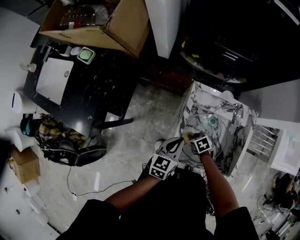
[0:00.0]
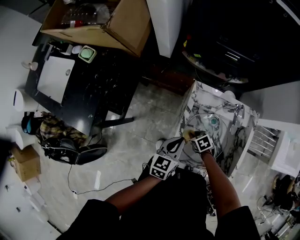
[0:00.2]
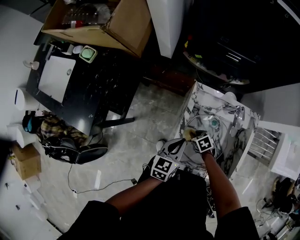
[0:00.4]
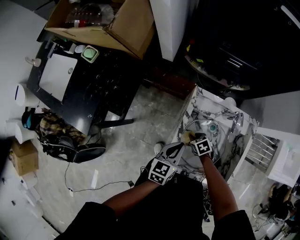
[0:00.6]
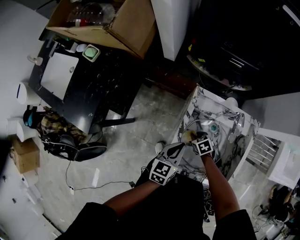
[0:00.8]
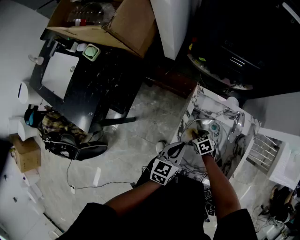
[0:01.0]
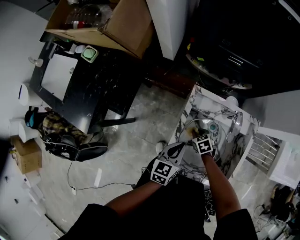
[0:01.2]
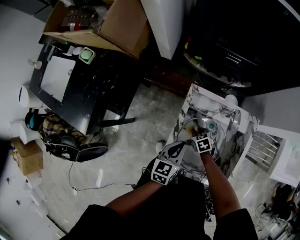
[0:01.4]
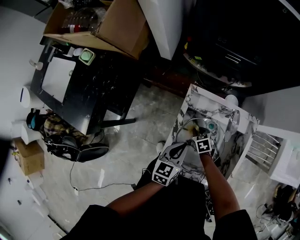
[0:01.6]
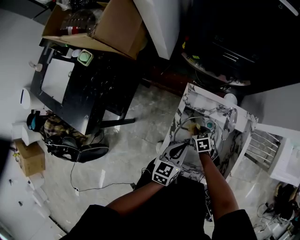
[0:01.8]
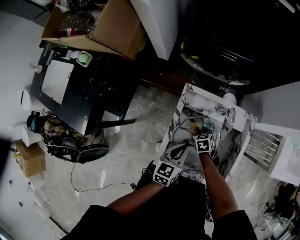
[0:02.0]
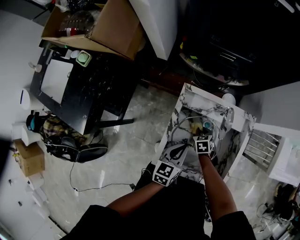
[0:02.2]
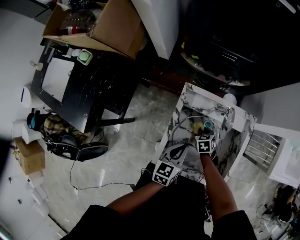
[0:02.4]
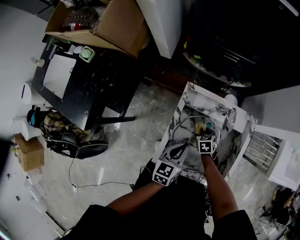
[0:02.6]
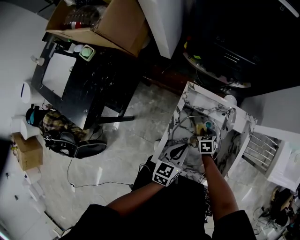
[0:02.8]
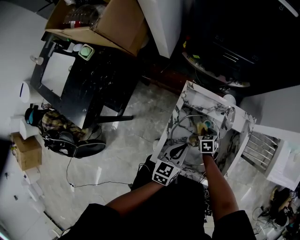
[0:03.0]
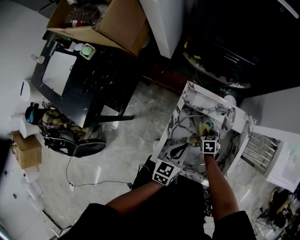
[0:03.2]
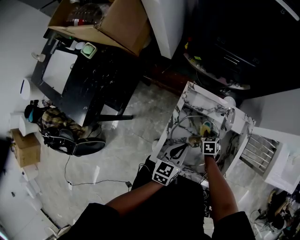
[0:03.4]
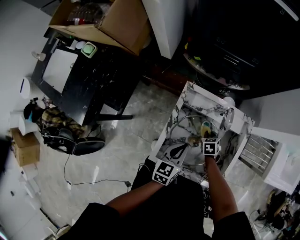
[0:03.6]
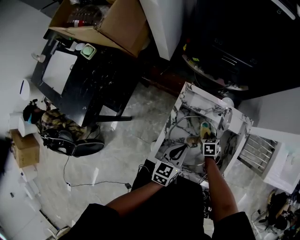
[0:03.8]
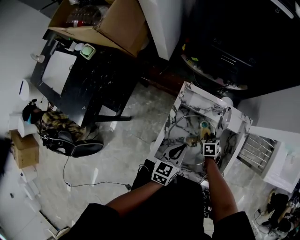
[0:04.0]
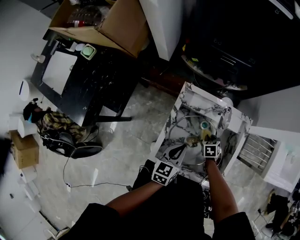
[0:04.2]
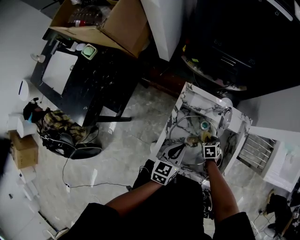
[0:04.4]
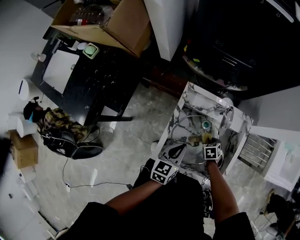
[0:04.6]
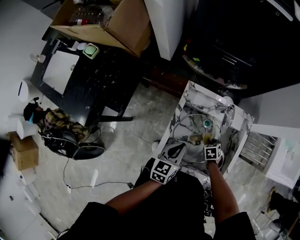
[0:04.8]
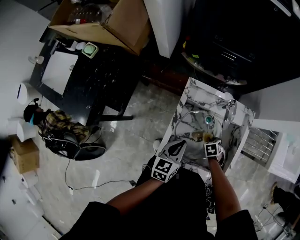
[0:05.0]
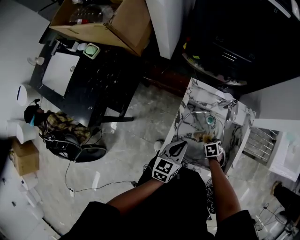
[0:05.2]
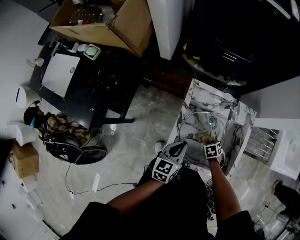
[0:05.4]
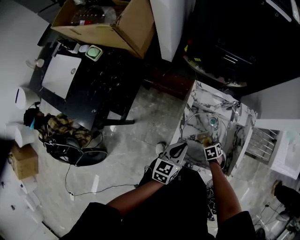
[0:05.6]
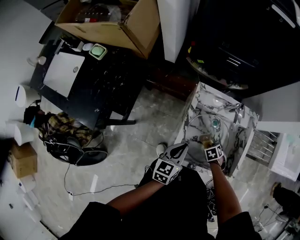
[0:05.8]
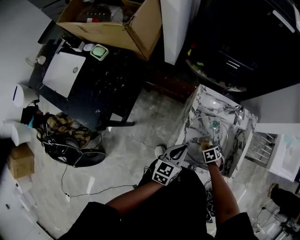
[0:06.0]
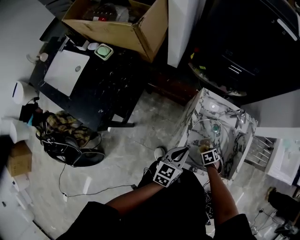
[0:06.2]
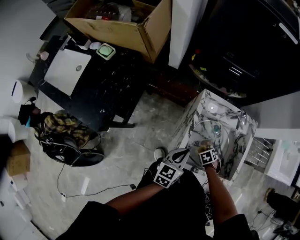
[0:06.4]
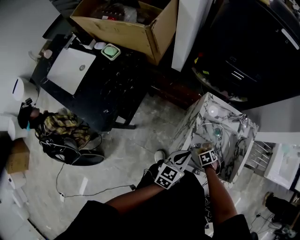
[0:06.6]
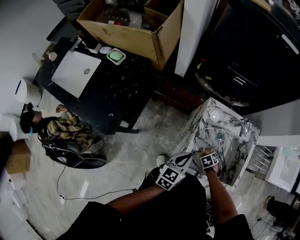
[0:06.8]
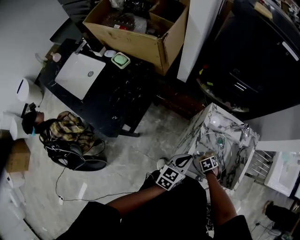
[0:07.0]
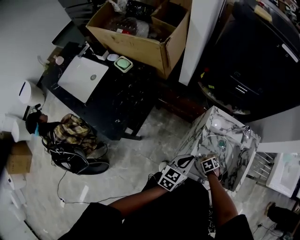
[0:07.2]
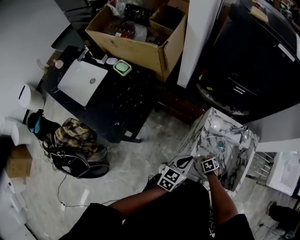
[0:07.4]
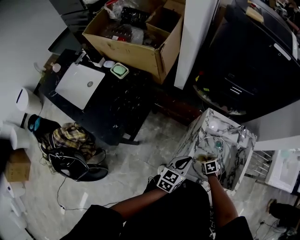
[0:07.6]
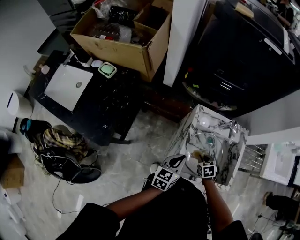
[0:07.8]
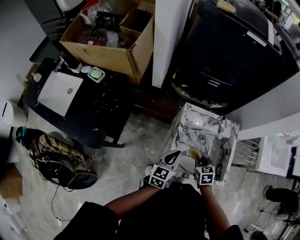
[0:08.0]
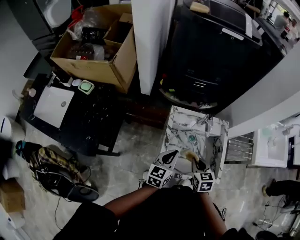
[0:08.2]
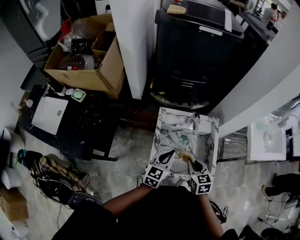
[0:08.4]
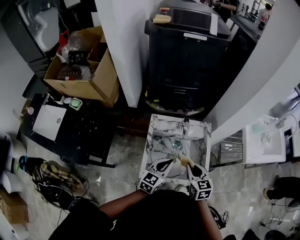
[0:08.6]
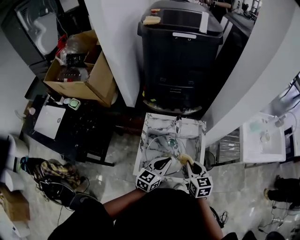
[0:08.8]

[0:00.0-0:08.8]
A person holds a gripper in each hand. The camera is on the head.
0:00.0 to 0:01.4: The right gripper shifts by about 5 cm.
0:01.4 to 0:03.0: The left gripper shifts by about 5 cm; the right gripper travels to the right by approximately 10 cm.
0:03.0 to 0:04.4: The right gripper heads to the right, covering about 5 cm.
0:04.4 to 0:05.8: The right gripper moves some 10 cm. Meanwhile the left gripper changes place by about 10 cm.
0:05.8 to 0:07.4: The right gripper changes place by about 10 cm. Meanwhile the left gripper moves approximately 5 cm.
0:07.4 to 0:08.8: The right gripper moves upward, approximately 30 cm, and tilts its fingers approximately 50 degrees upward. The left gripper moves about 25 cm.

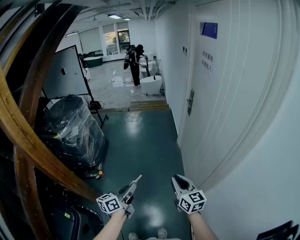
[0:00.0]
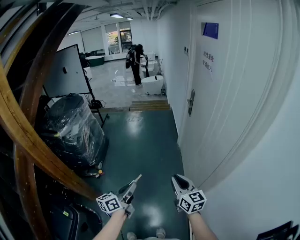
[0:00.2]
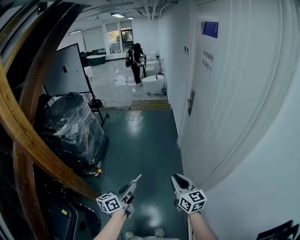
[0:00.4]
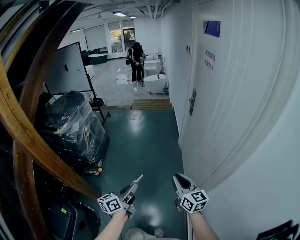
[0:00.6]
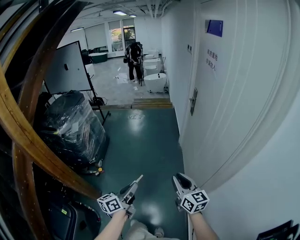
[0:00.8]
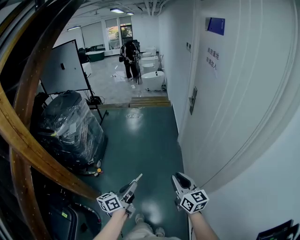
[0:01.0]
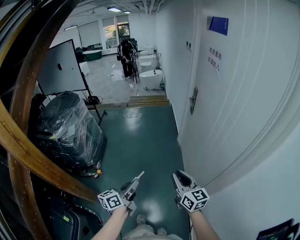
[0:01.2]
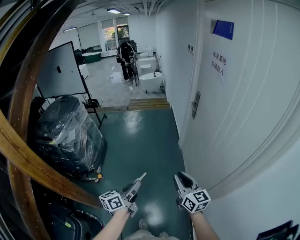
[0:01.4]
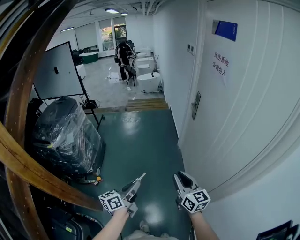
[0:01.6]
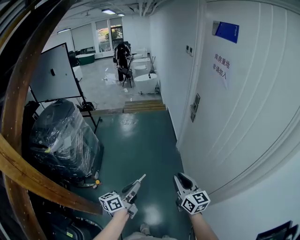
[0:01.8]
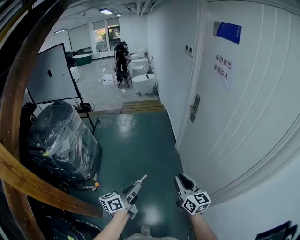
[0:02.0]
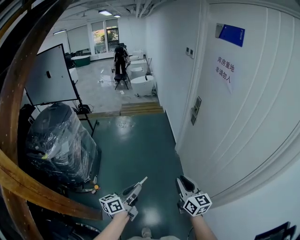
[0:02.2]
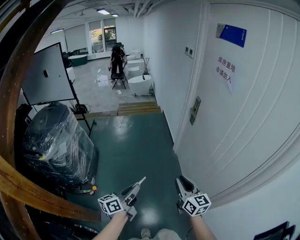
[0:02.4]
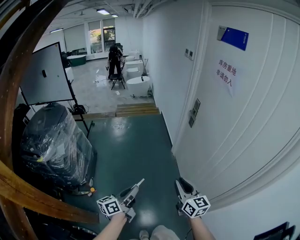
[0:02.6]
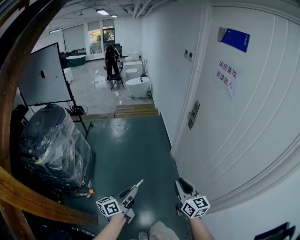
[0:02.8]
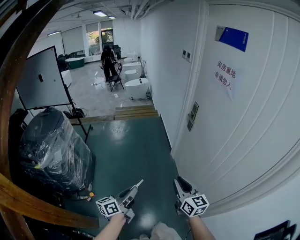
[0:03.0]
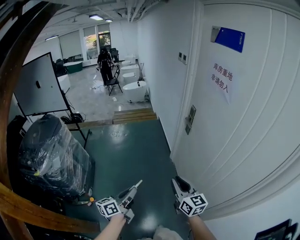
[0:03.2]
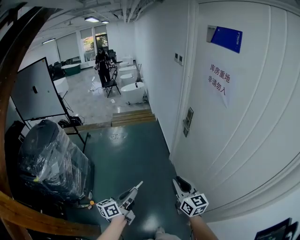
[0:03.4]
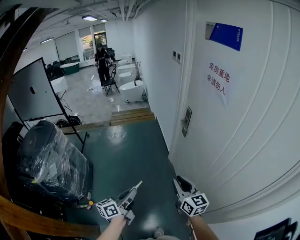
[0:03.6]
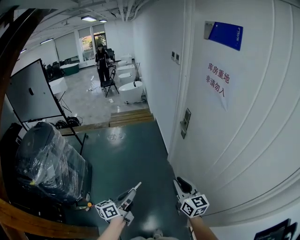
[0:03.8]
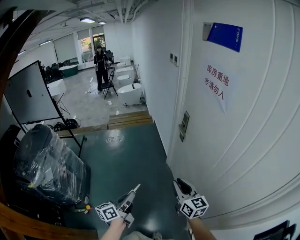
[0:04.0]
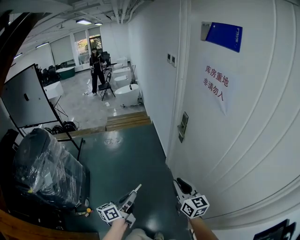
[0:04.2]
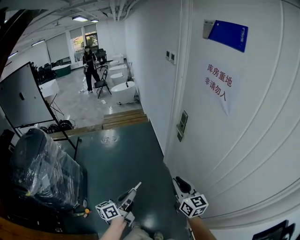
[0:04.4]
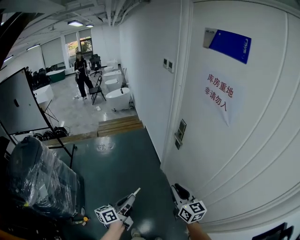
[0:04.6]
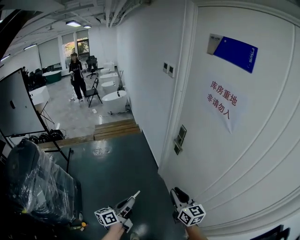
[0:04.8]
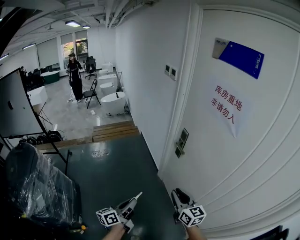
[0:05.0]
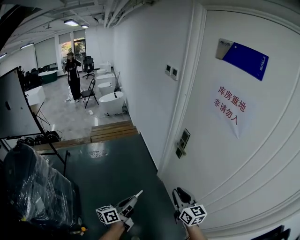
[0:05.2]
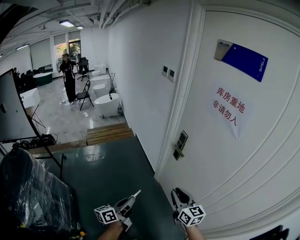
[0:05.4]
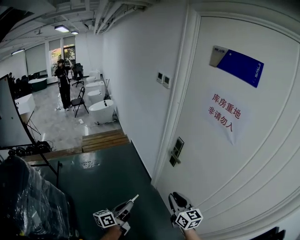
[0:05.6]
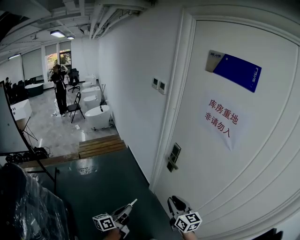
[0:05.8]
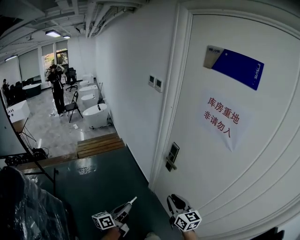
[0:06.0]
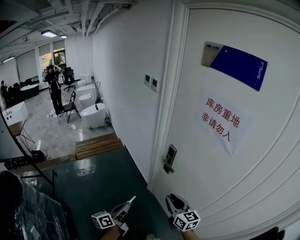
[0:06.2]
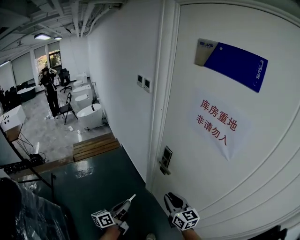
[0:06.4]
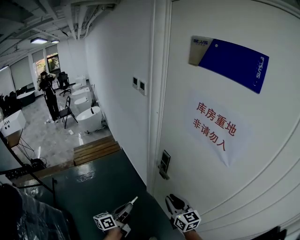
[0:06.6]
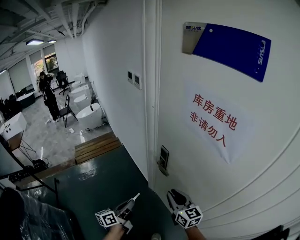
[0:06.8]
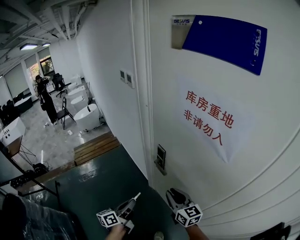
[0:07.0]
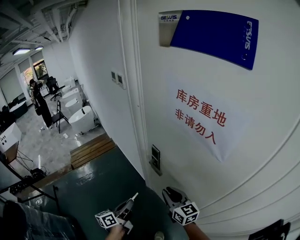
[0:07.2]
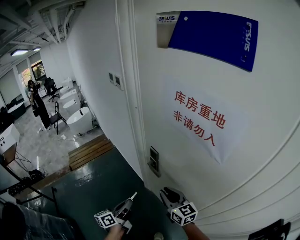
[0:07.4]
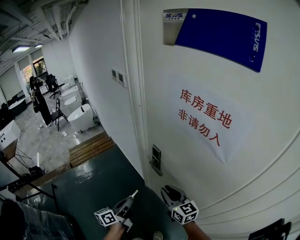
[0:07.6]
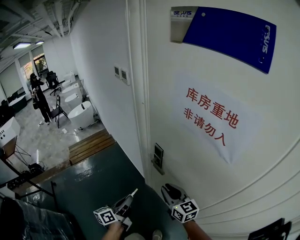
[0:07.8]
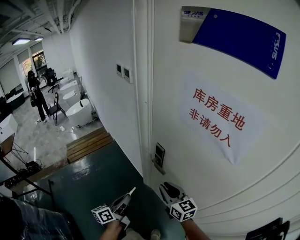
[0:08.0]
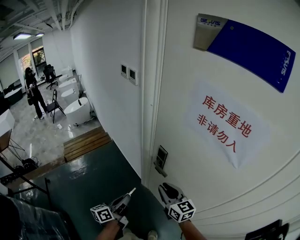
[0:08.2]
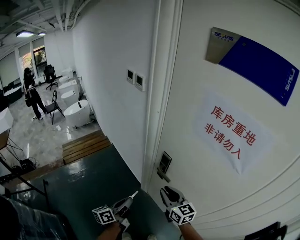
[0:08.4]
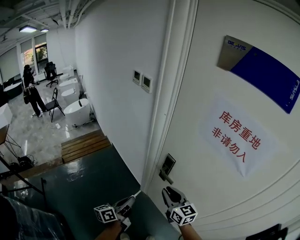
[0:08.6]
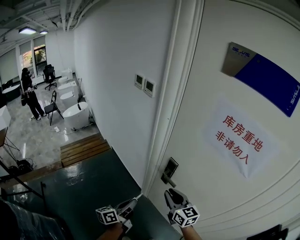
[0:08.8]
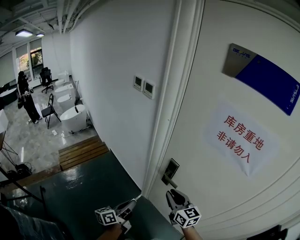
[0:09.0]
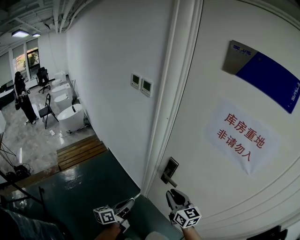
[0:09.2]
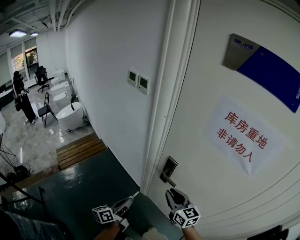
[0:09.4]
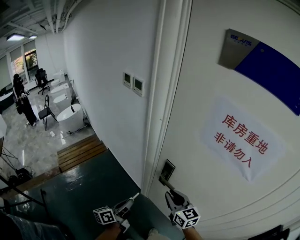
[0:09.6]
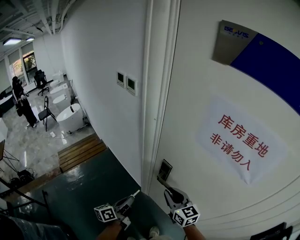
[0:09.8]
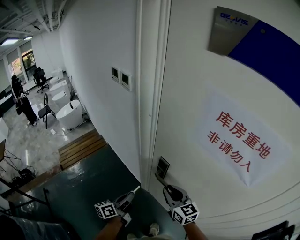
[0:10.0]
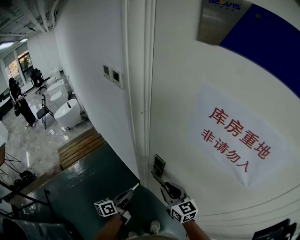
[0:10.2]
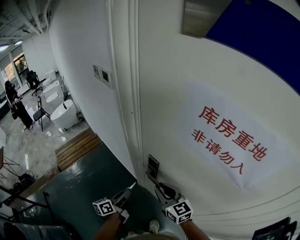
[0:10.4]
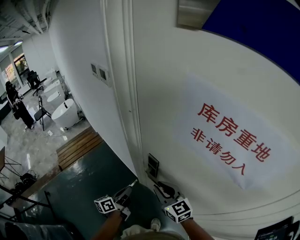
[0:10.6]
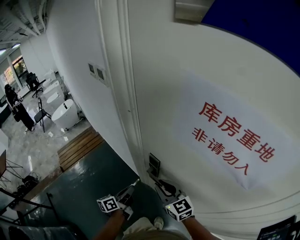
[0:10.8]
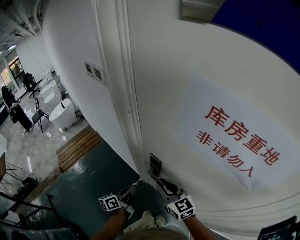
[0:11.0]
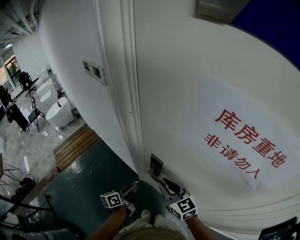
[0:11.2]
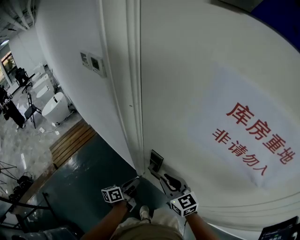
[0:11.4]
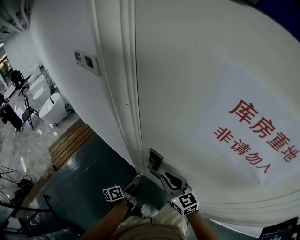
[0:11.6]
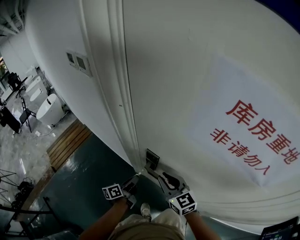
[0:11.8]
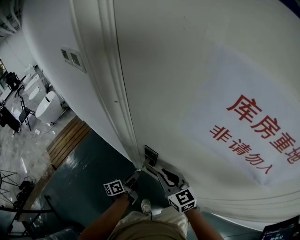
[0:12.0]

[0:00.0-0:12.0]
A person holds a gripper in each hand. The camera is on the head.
0:00.0 to 0:01.6: Both grippers travel together forward, approximately 15 cm.
0:01.6 to 0:03.0: The right gripper goes some 10 cm forward, while the left gripper shifts roughly 15 cm forward and to the left.
0:03.0 to 0:04.4: Both grippers travel together forward, roughly 15 cm.
0:04.4 to 0:06.0: The grippers both shift forward and to the left by some 20 cm.
0:06.0 to 0:07.6: The right gripper heads forward, covering roughly 15 cm; the left gripper travels forward and to the right by approximately 20 cm.
0:07.6 to 0:09.0: Both grippers move to the left, some 10 cm.
0:09.0 to 0:10.4: The right gripper shifts some 10 cm forward and to the right, while the left gripper shifts about 15 cm forward and to the right.
0:10.4 to 0:12.0: The right gripper moves forward, some 5 cm, while the left gripper is displaced downward and forward by approximately 15 cm.

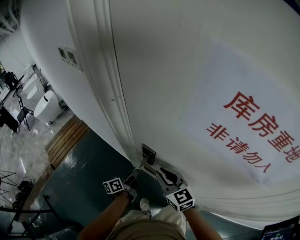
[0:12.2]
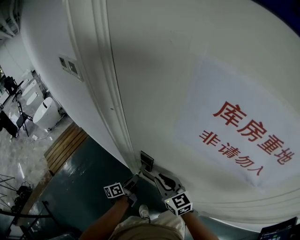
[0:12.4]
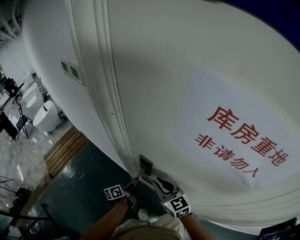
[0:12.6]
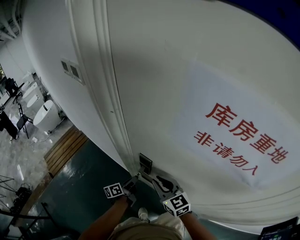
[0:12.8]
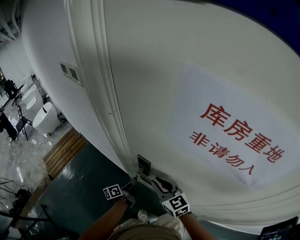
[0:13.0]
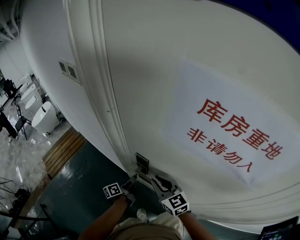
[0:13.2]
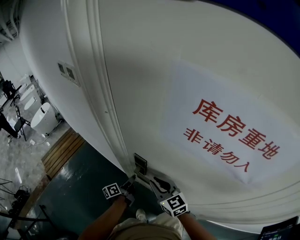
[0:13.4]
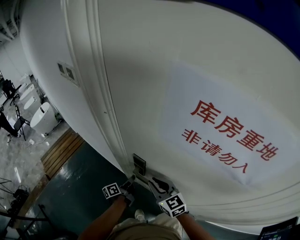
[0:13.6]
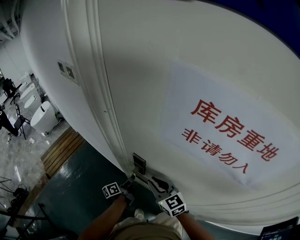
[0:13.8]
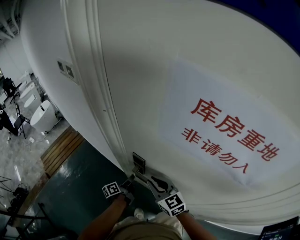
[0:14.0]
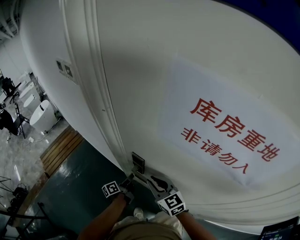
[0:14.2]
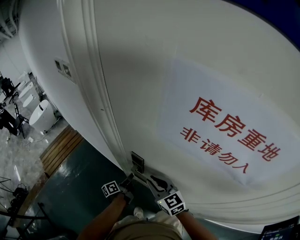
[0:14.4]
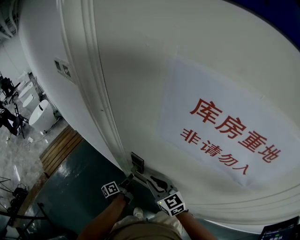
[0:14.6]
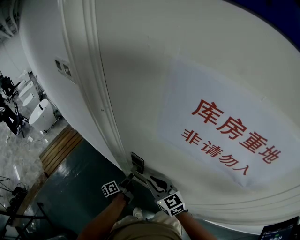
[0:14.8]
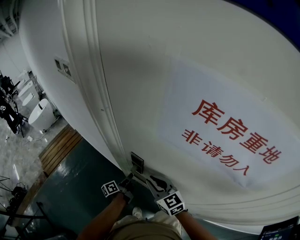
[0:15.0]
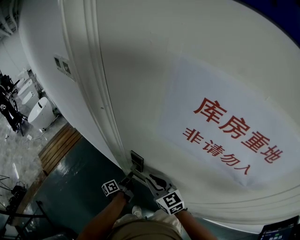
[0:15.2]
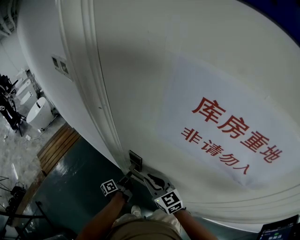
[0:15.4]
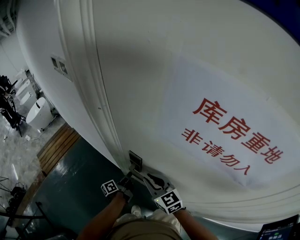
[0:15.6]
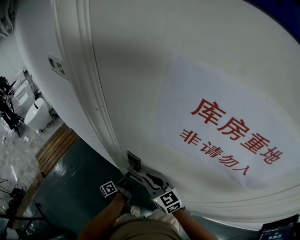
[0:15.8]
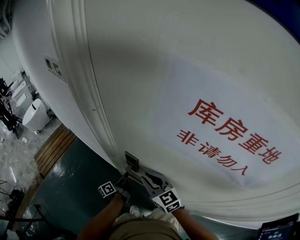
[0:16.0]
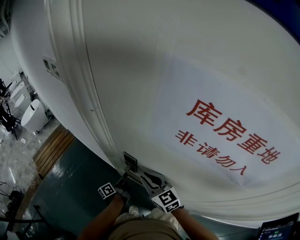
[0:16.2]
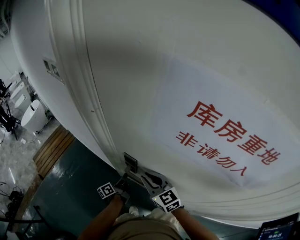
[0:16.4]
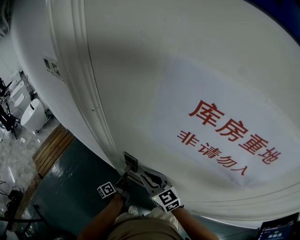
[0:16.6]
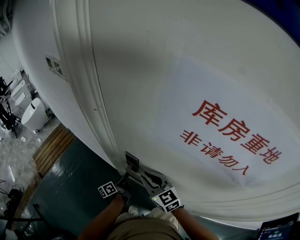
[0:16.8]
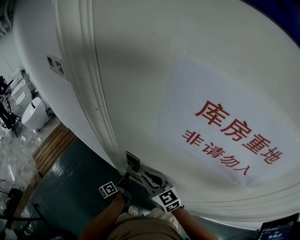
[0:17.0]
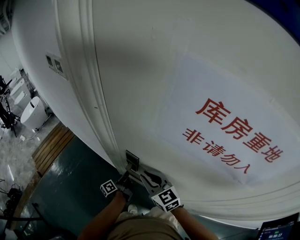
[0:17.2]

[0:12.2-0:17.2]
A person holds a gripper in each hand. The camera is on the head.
0:12.2 to 0:17.2: The grippers stay close to where they were, moving slightly.
